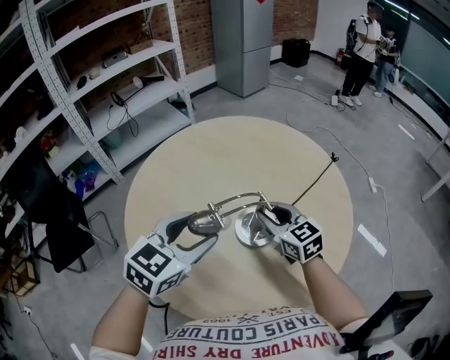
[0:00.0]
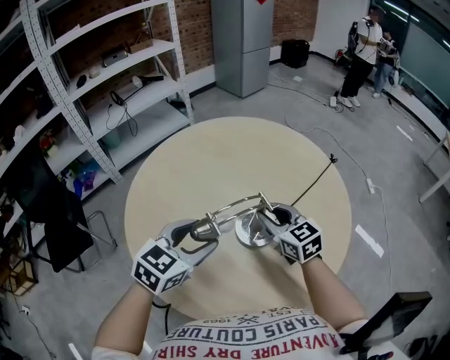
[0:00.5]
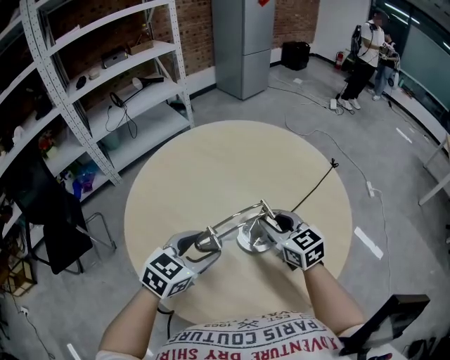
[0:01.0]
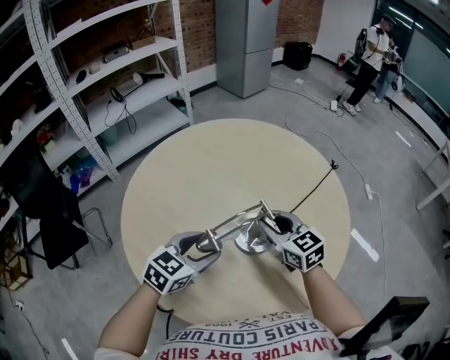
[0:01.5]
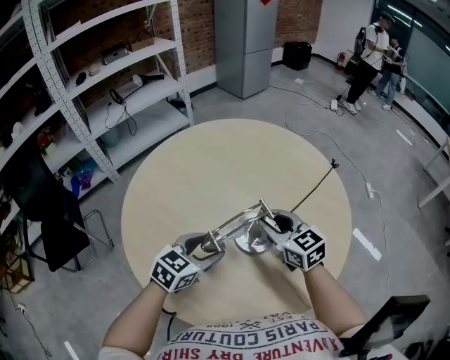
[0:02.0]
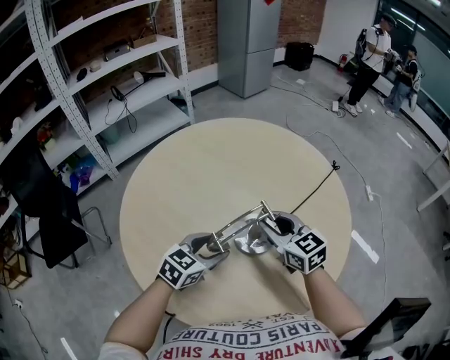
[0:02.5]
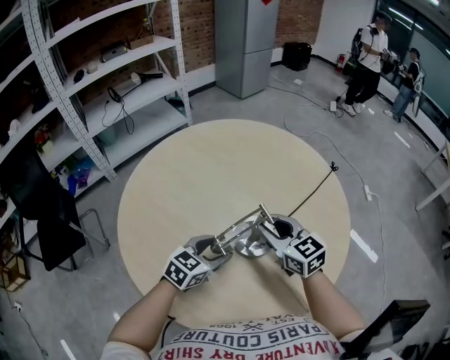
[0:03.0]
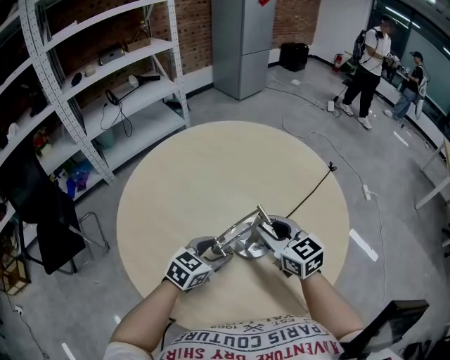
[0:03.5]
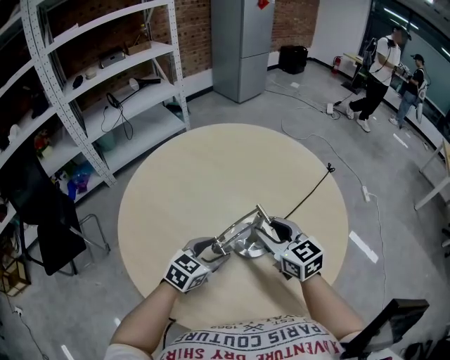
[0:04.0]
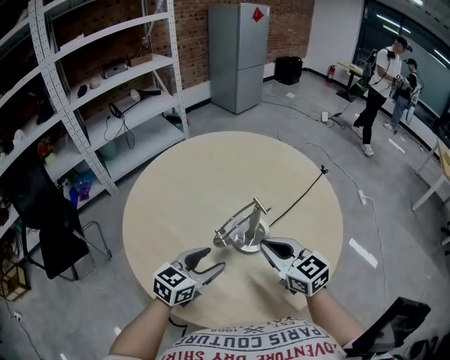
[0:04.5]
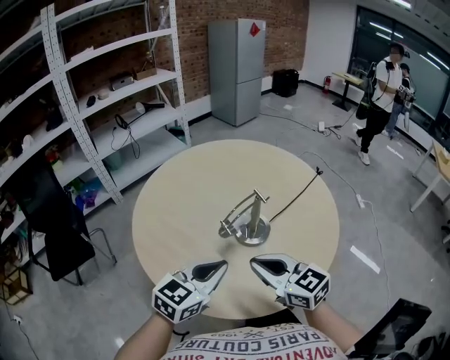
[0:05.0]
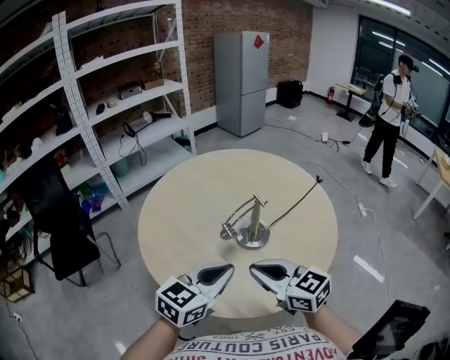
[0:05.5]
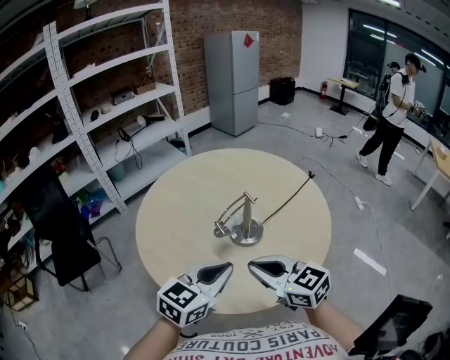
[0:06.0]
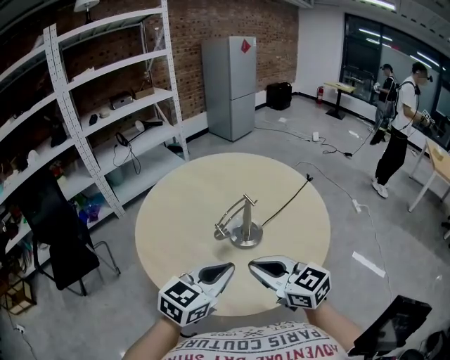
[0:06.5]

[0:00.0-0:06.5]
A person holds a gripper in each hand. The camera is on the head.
0.0 to 2.0 s: The left gripper heads downward, covering approximately 15 cm.
2.0 to 4.5 s: The right gripper shifts approximately 10 cm backward, and closes.
4.5 to 6.5 s: The right gripper travels backward and upward by roughly 15 cm. Meanwhile the left gripper travels upward and backward by roughly 20 cm, and closes up.

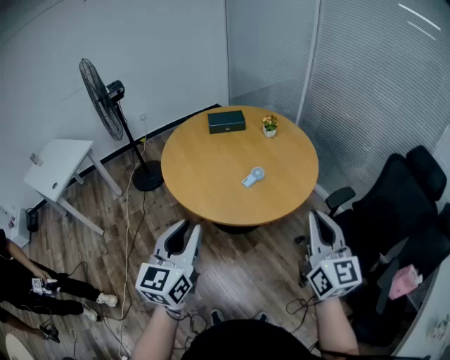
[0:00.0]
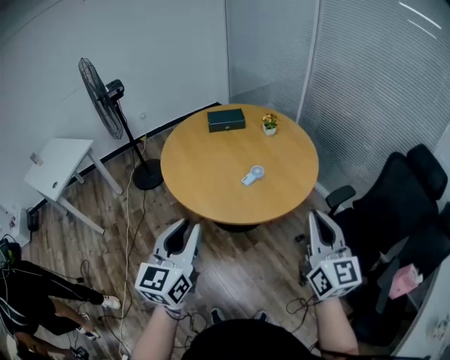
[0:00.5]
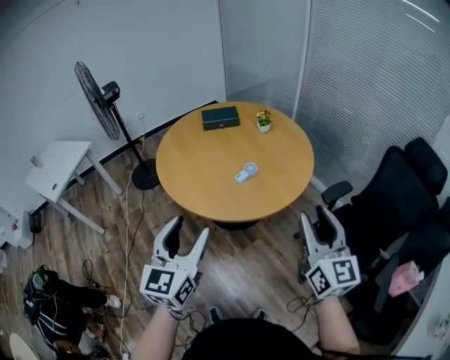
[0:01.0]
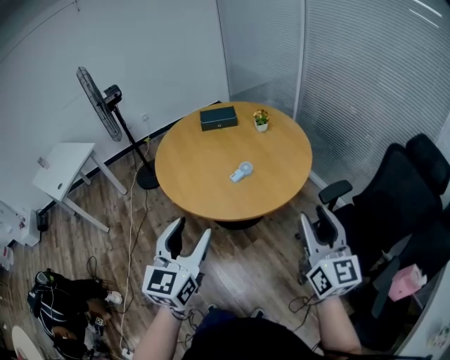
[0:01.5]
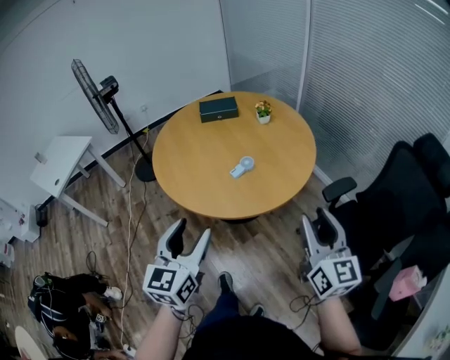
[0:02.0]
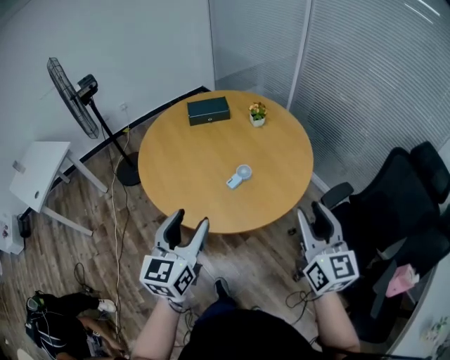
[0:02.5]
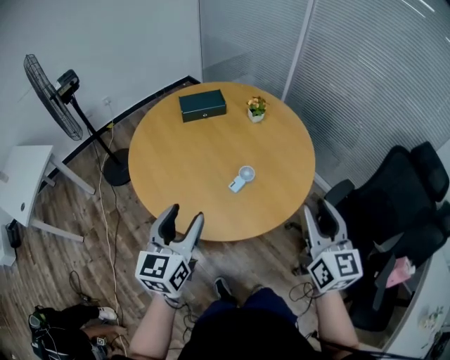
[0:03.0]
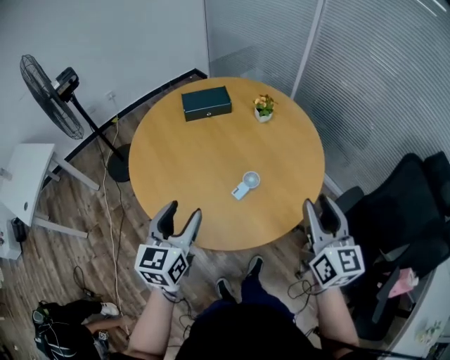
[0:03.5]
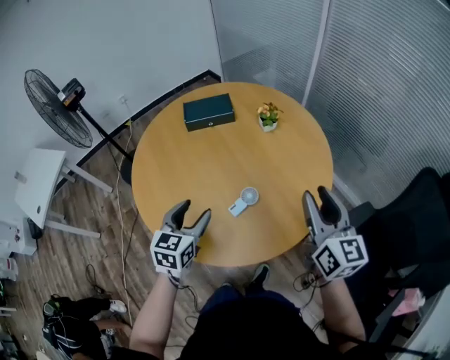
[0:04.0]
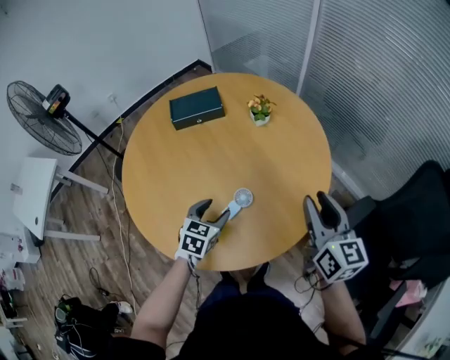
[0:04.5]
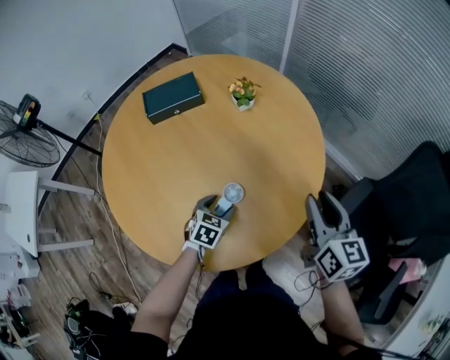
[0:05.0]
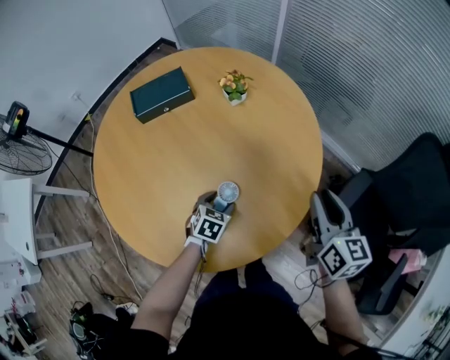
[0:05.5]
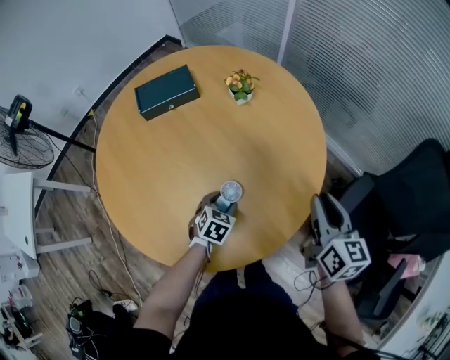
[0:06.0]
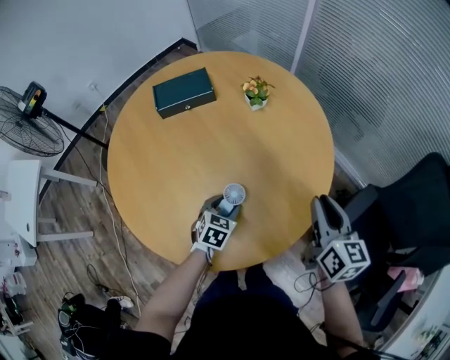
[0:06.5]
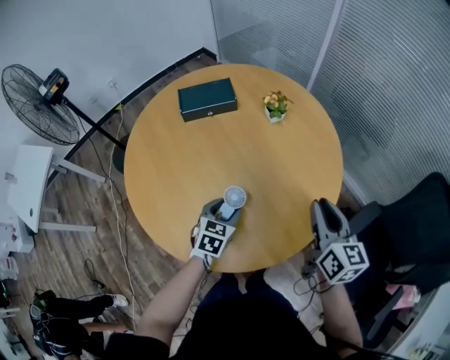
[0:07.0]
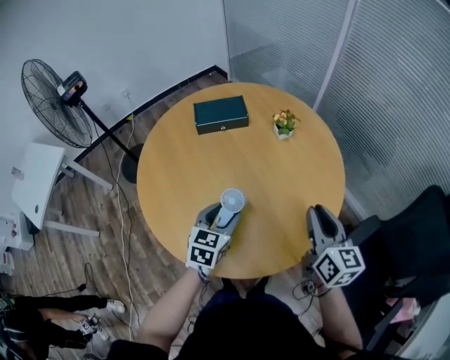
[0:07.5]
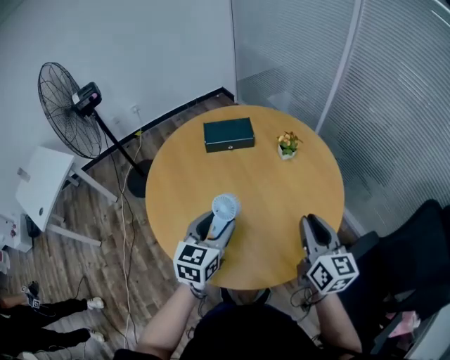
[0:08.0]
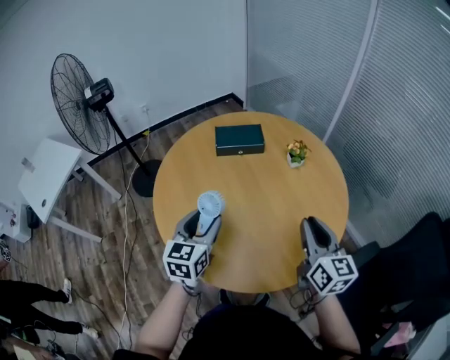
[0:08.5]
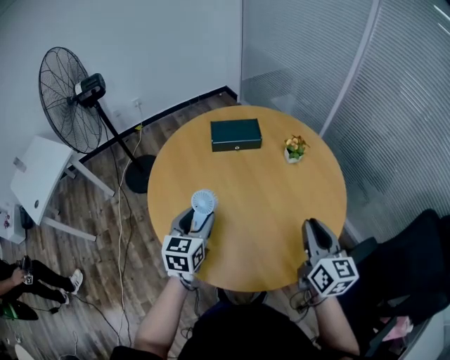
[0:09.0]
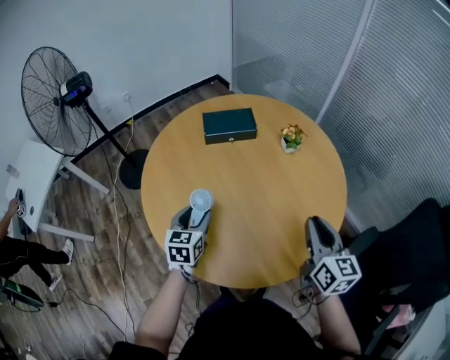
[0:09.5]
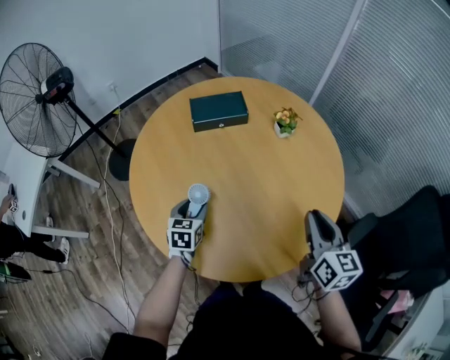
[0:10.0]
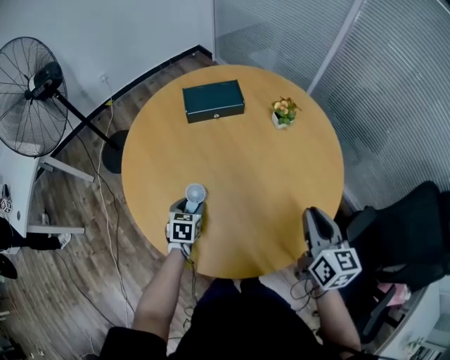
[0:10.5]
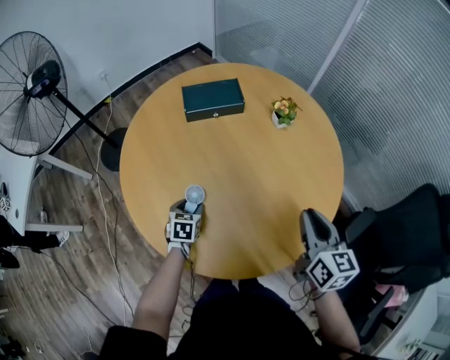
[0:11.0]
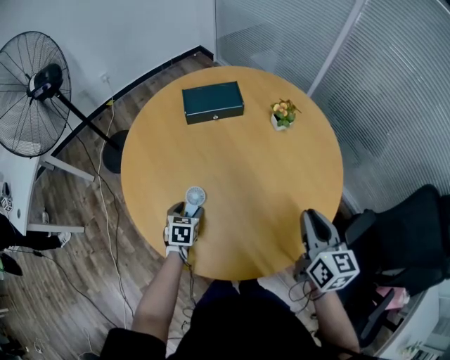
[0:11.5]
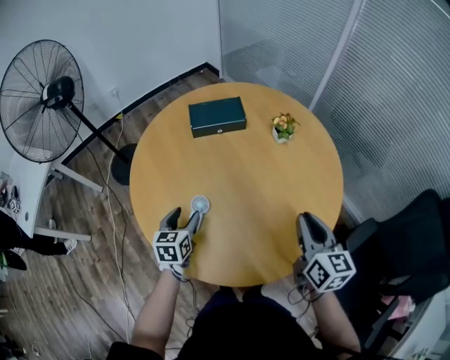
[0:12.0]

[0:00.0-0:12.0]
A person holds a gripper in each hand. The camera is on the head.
0.0 to 2.0 s: The left gripper moves to the right, some 10 cm, and opens up. Meanwhile the right gripper moves to the right and downward, roughly 15 cm, and opens up.
2.0 to 4.0 s: Both grippers travel together forward, some 40 cm. The left gripper swivels some 20 degrees.
4.0 to 6.0 s: The left gripper shifts approximately 30 cm downward, forward and to the right, and angles its fingers downward, by roughly 30 degrees; the right gripper travels downward, forward and to the right by roughly 15 cm, and rotates some 20 degrees.
6.0 to 8.0 s: The left gripper moves upward and to the left, approximately 35 cm, and tips its fingers upward by roughly 40 degrees; the right gripper shifts some 20 cm to the left and upward, and changes its angle by about 20 degrees.
8.0 to 10.0 s: The right gripper travels downward by about 5 cm. The left gripper shifts approximately 25 cm downward and to the left, and swivels approximately 20 degrees.
10.0 to 12.0 s: The left gripper goes downward and returns, approximately 10 cm each way.

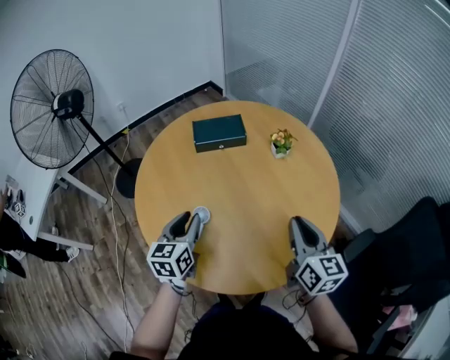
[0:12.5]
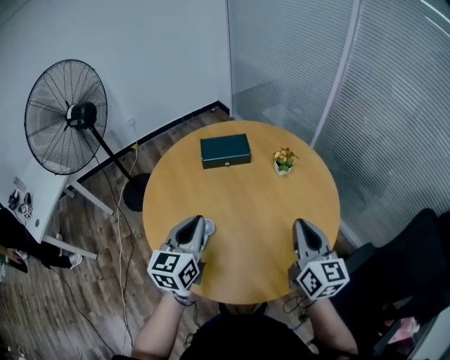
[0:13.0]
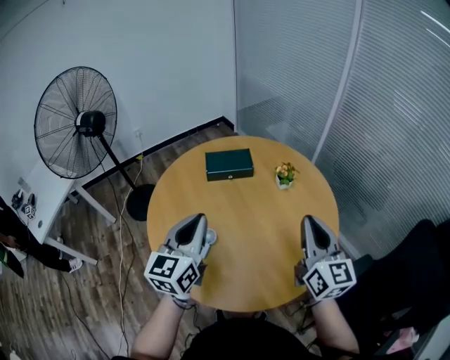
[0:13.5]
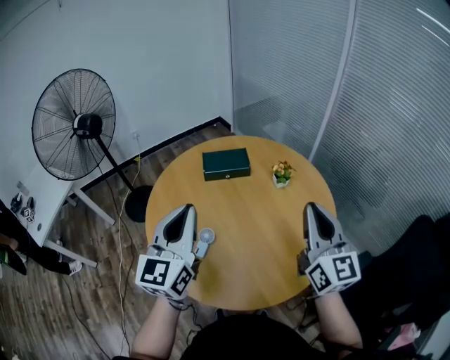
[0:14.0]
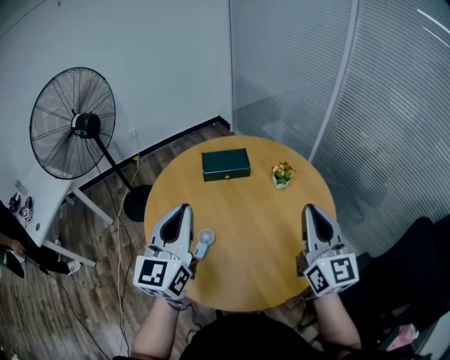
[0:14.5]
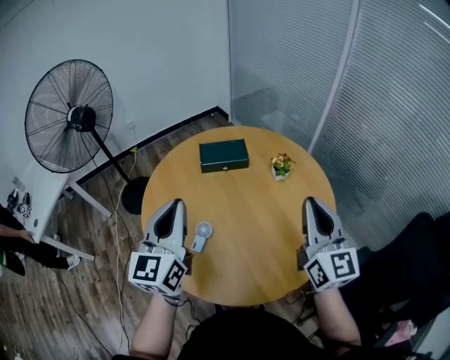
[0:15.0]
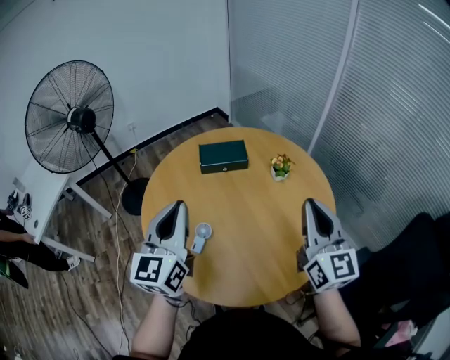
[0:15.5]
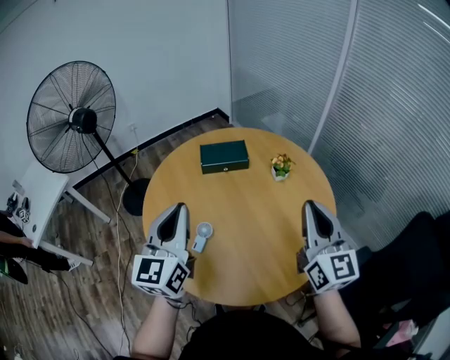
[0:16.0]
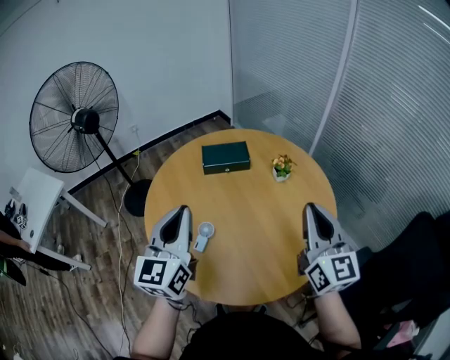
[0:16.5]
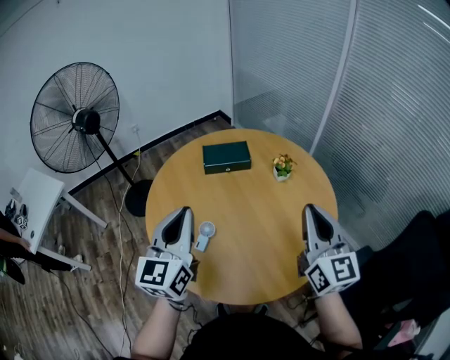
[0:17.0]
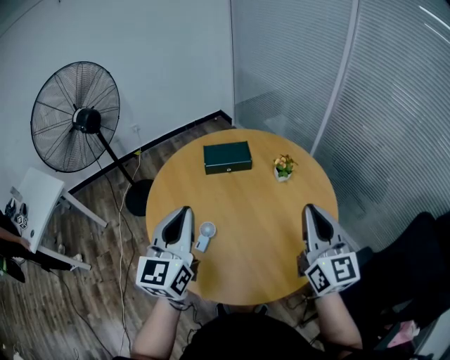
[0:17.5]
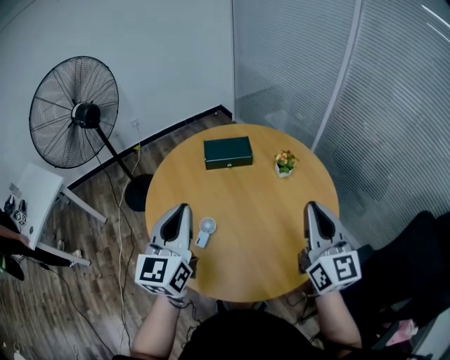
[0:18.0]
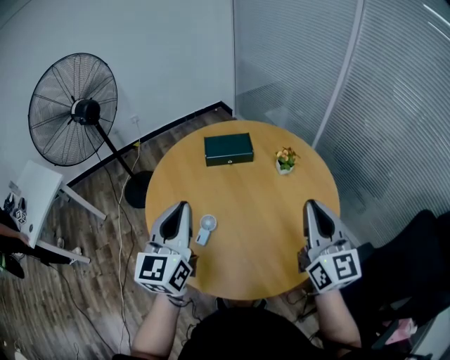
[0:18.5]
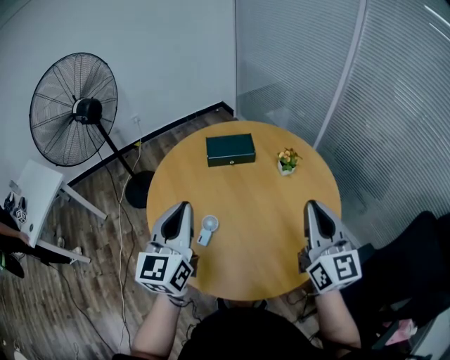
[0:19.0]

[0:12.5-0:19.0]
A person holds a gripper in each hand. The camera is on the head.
12.5 to 14.5 s: The two grippers go approximately 20 cm upward. The right gripper rotates some 30 degrees. The left gripper swivels some 30 degrees, and closes its fingers.
14.5 to 19.0 s: There are only small adjustments of the grippers.

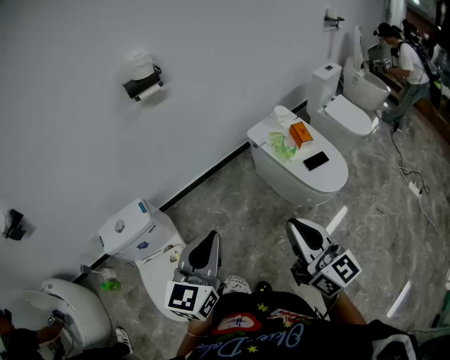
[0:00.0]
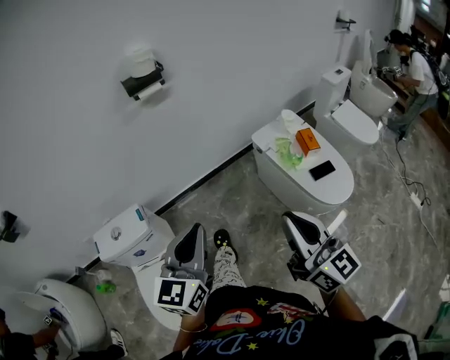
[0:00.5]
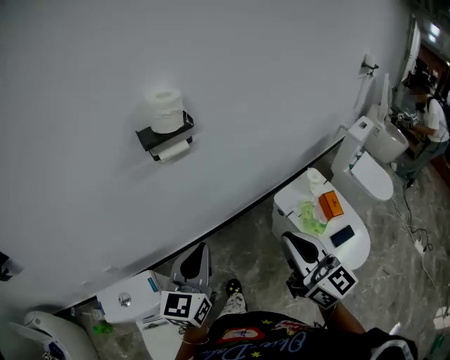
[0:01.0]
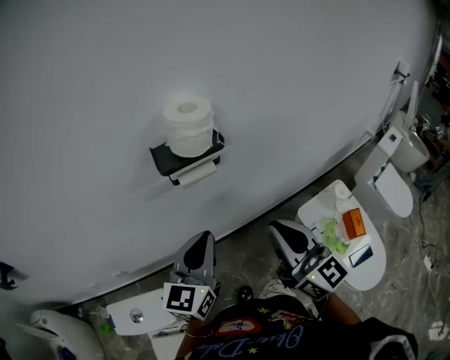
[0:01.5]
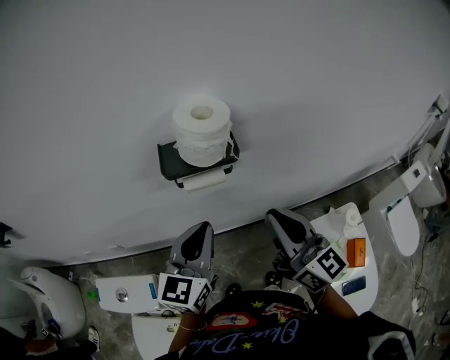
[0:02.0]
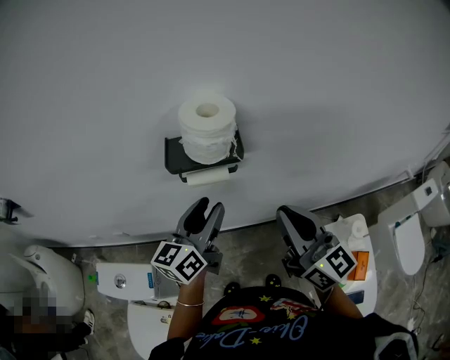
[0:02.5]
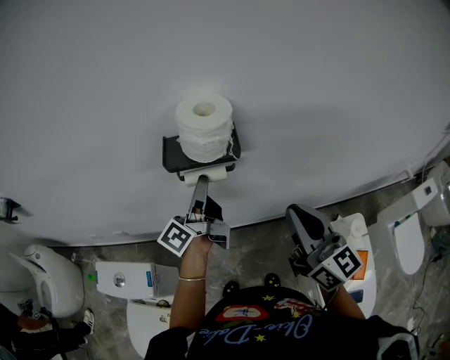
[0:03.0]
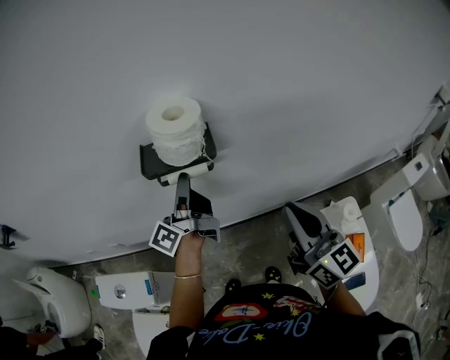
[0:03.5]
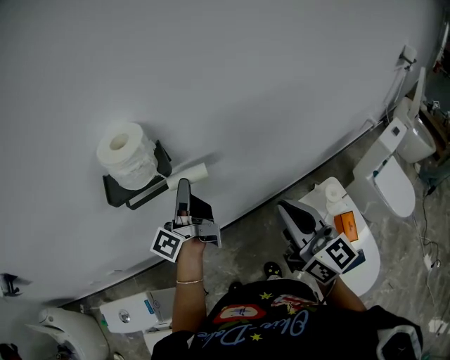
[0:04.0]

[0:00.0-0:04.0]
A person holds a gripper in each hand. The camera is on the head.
0.0 to 2.0 s: The pair of grippers is taken forward, some 60 cm. The left gripper swivels about 20 degrees, while the right gripper turns by roughly 30 degrees.
2.0 to 4.0 s: The right gripper is displaced to the right by some 15 cm. Meanwhile the left gripper shifts roughly 15 cm forward and to the right, rolls counterclockwise, seen from behind, by some 70 degrees, and opens its fingers.
